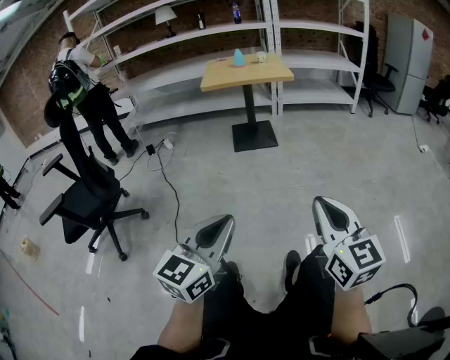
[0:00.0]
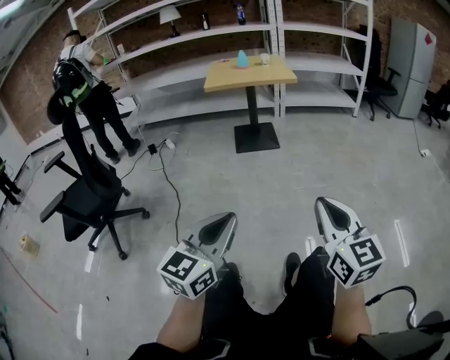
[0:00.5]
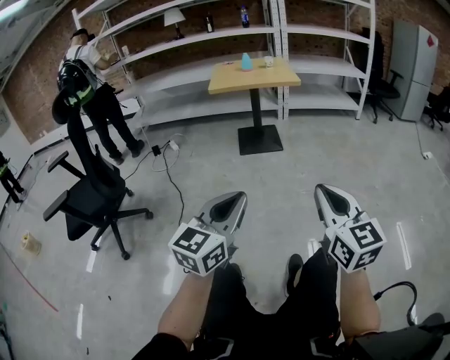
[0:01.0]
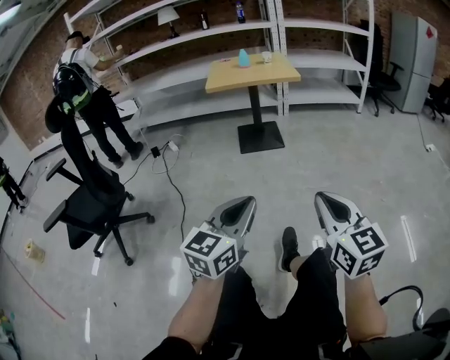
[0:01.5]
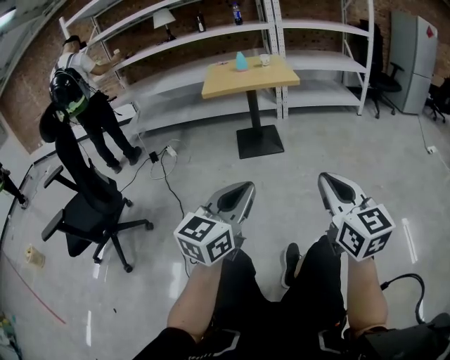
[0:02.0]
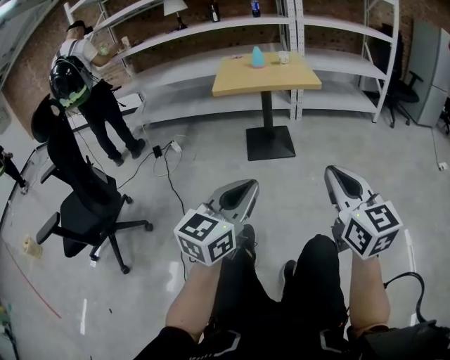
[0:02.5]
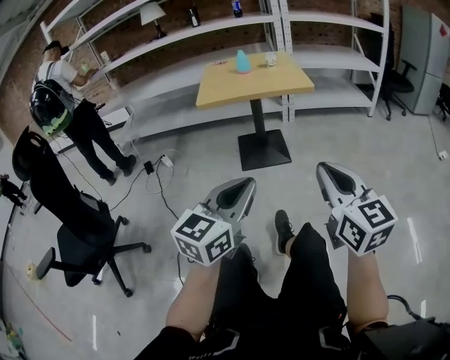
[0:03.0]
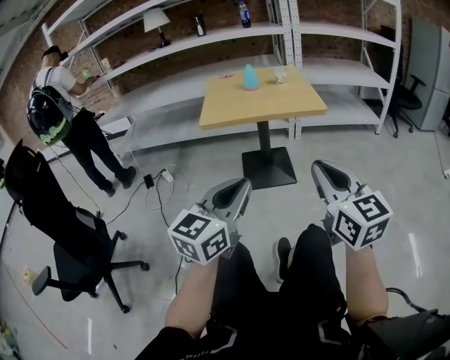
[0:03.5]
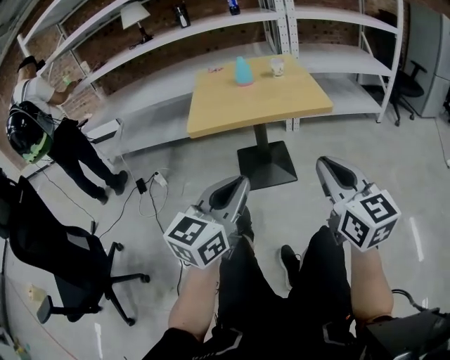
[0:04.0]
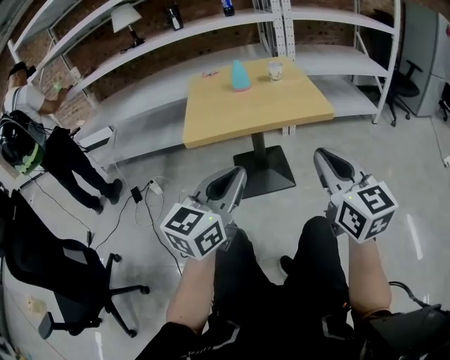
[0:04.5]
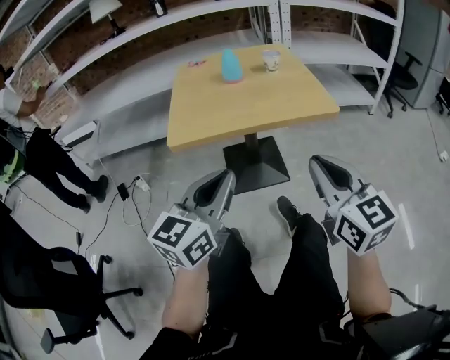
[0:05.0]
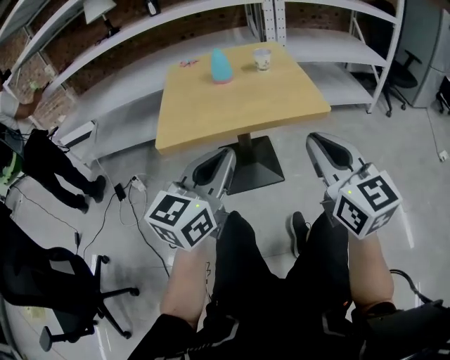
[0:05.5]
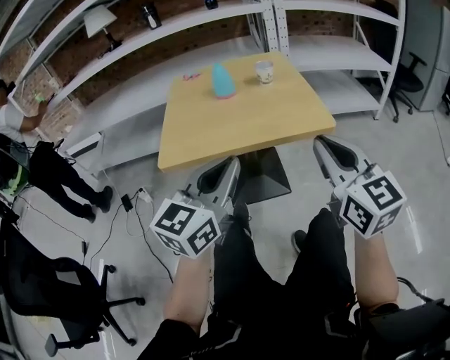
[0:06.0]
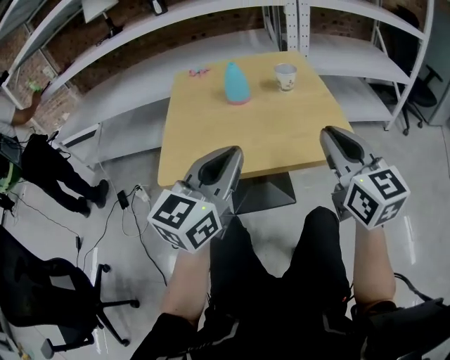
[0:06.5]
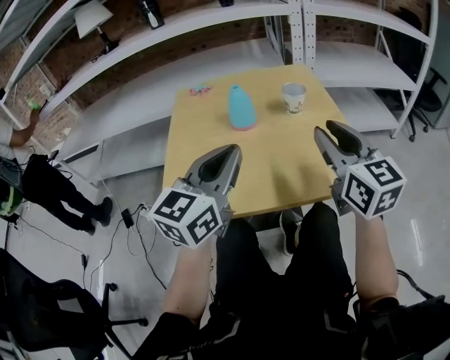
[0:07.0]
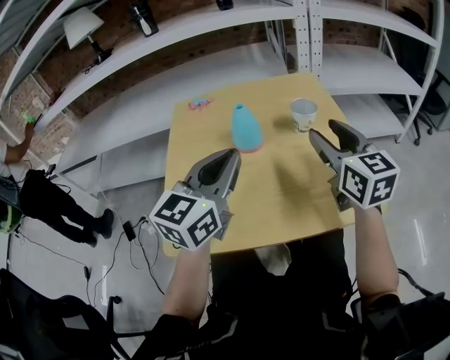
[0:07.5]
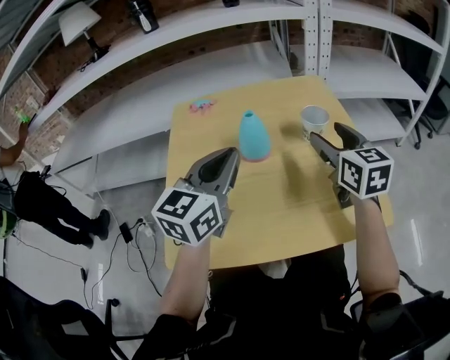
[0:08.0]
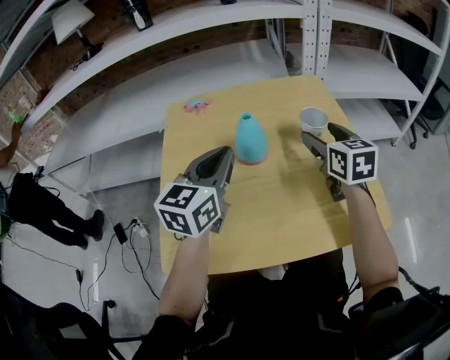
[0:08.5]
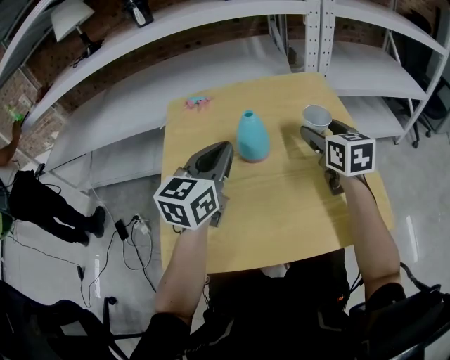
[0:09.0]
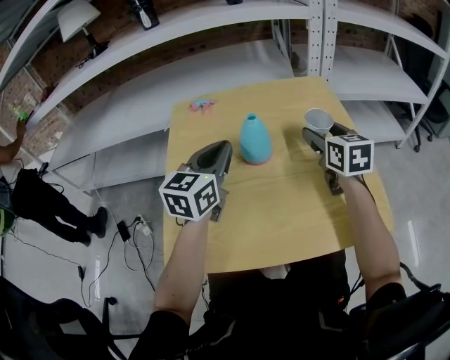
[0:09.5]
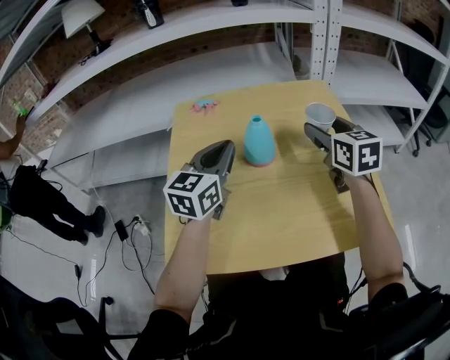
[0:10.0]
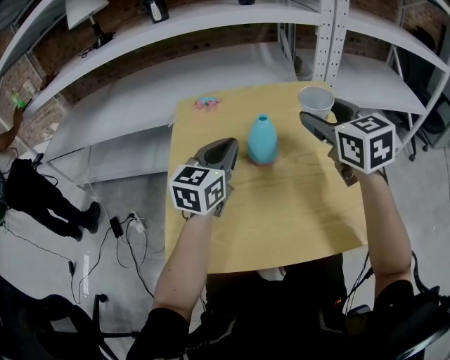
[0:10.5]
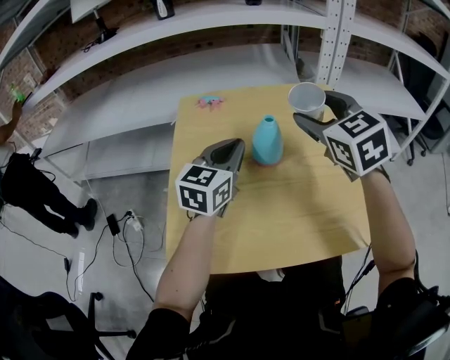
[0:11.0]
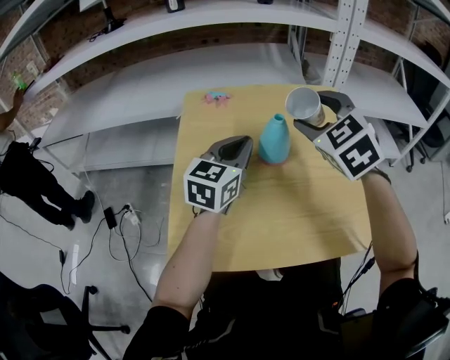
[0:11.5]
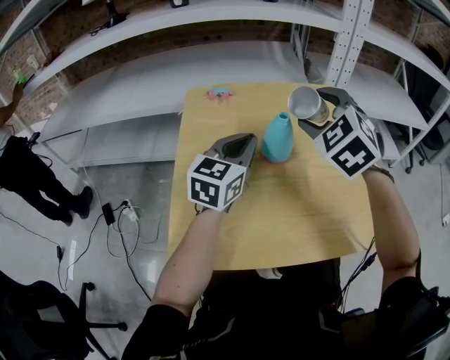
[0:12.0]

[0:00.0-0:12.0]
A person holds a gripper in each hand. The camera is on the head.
0:00.0 to 0:02.0: The two grippers go about 15 cm forward.
0:02.0 to 0:04.0: The pair of grippers is taken forward, about 50 cm.
0:04.0 to 0:06.0: Both grippers travel together forward, approximately 20 cm.
0:06.0 to 0:08.0: The two grippers go approximately 35 cm forward. The right gripper opens its fingers.
0:08.0 to 0:10.0: Both grippers travel together forward, some 5 cm.
0:10.0 to 0:12.0: The right gripper travels to the left and upward by roughly 10 cm, and twists about 50 degrees counterclockwise, seen from behind.

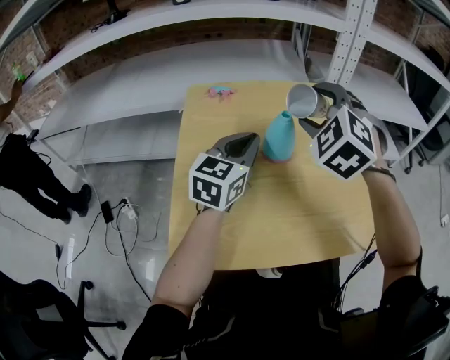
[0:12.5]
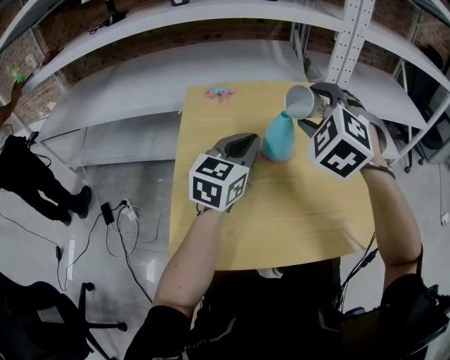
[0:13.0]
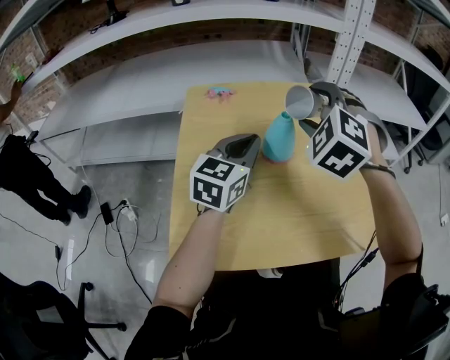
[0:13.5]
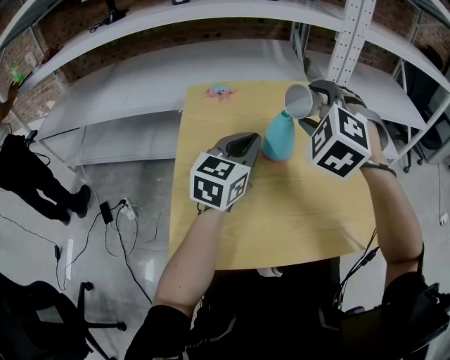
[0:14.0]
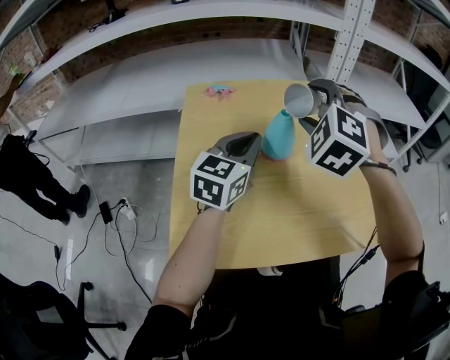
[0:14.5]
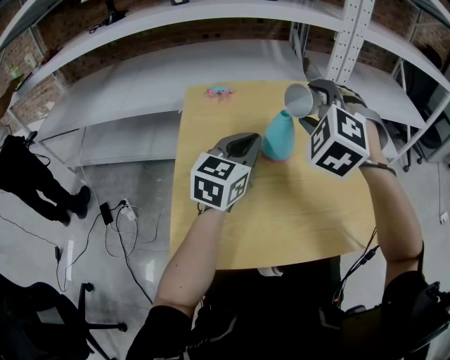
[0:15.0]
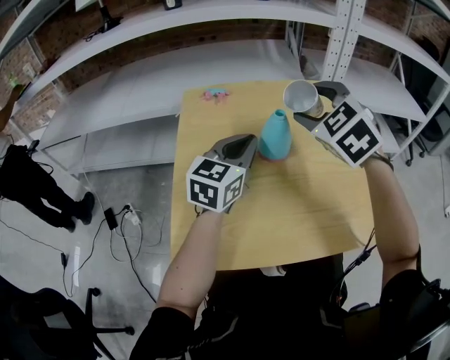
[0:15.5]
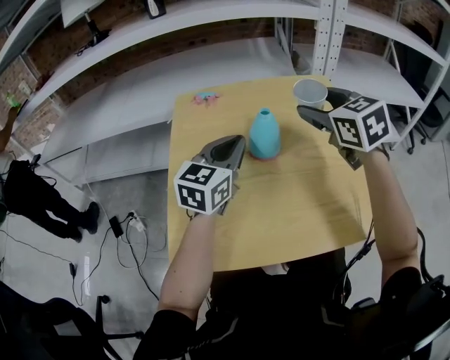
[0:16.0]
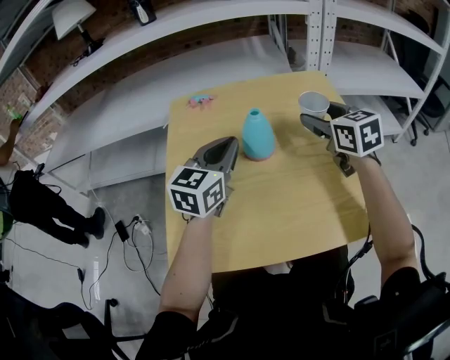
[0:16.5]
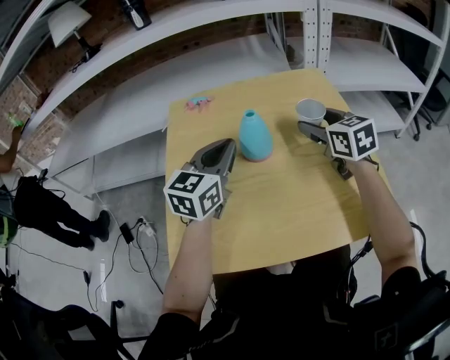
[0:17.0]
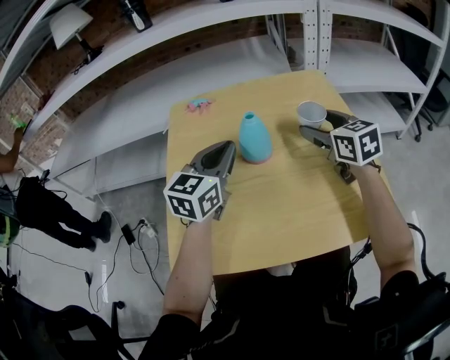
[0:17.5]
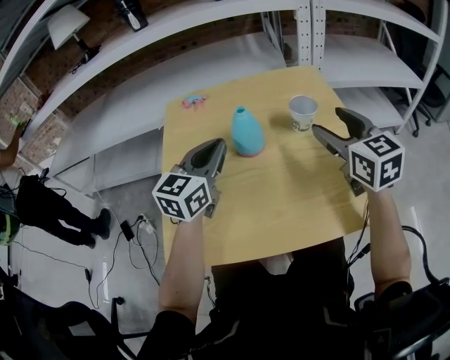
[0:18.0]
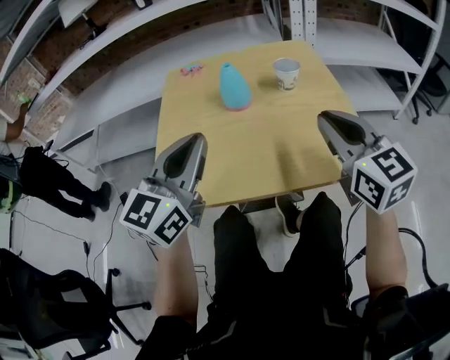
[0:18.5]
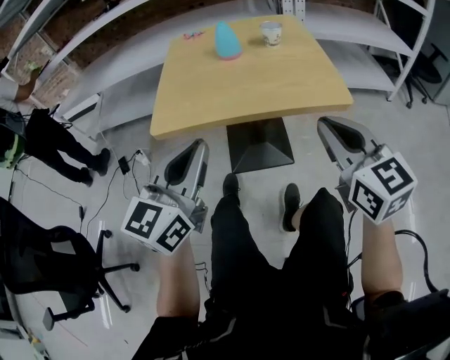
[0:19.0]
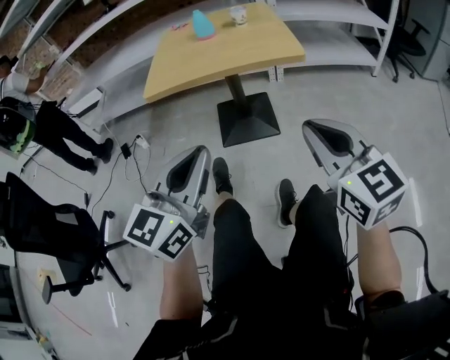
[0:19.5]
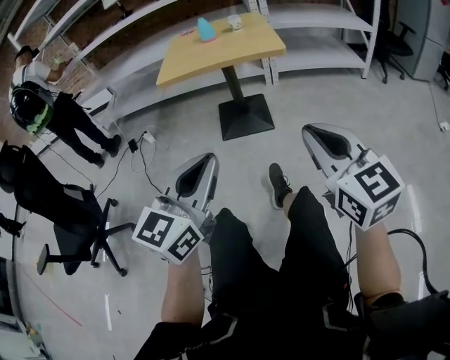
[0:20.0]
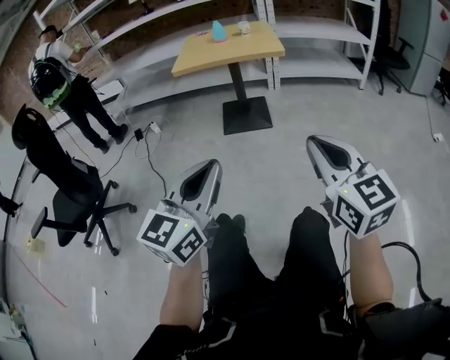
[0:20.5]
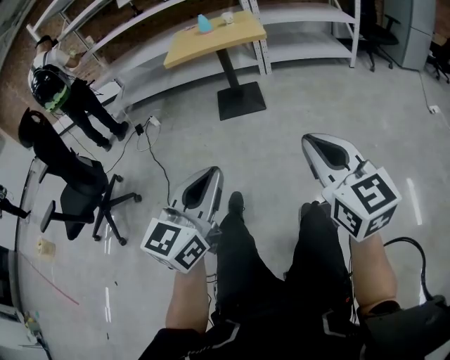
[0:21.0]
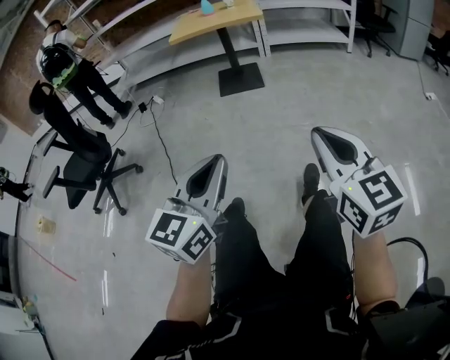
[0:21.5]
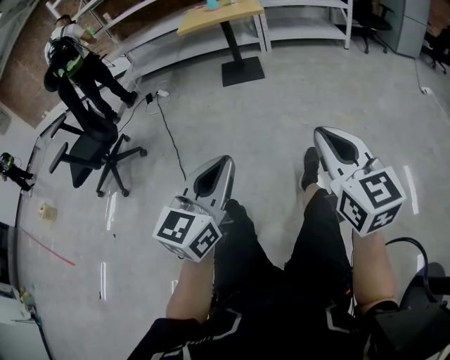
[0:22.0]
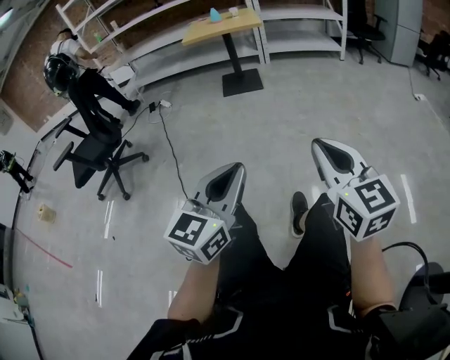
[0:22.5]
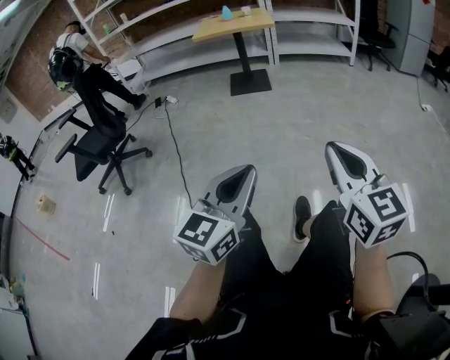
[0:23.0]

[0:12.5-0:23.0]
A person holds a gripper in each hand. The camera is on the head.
0:12.5 to 0:14.5: The grippers stay close to where they were, moving slightly.
0:14.5 to 0:16.5: The right gripper travels to the right and downward by approximately 15 cm, and rolls clockwise, seen from behind, by approximately 60 degrees.
0:16.5 to 0:19.0: The pair of grippers is taken backward, about 40 cm. The right gripper closes up.
0:19.0 to 0:21.0: The two grippers travel together, backward, about 70 cm.
0:21.0 to 0:23.0: The two grippers go some 35 cm backward.

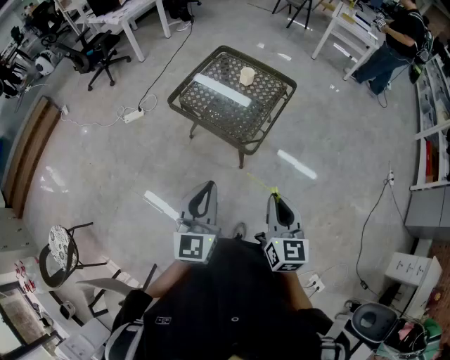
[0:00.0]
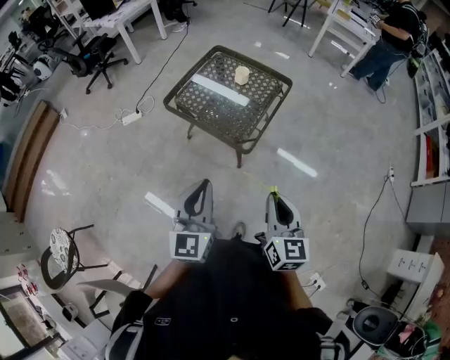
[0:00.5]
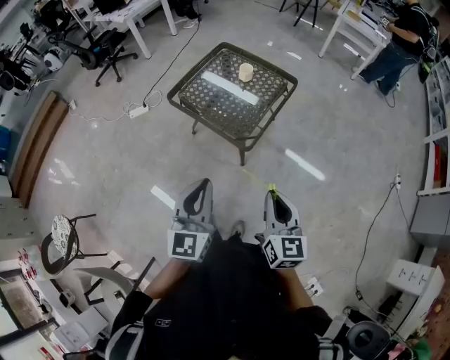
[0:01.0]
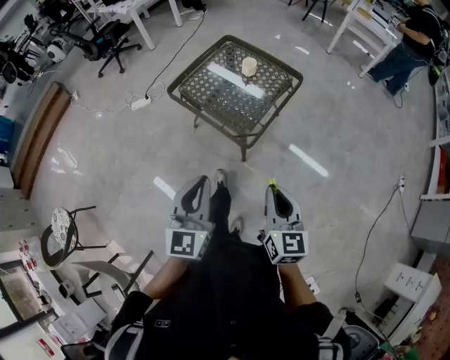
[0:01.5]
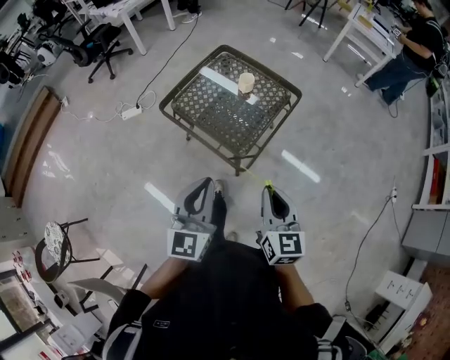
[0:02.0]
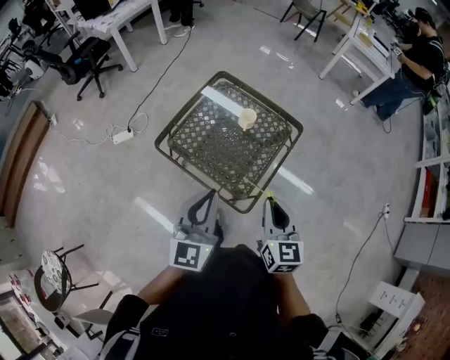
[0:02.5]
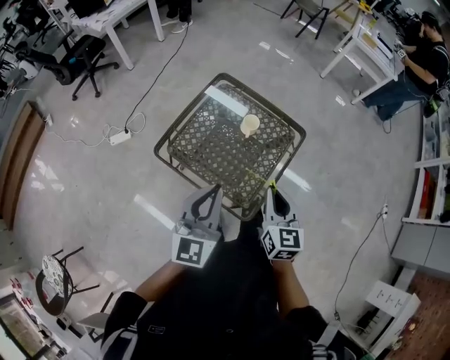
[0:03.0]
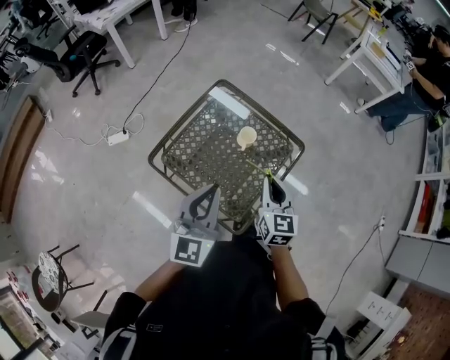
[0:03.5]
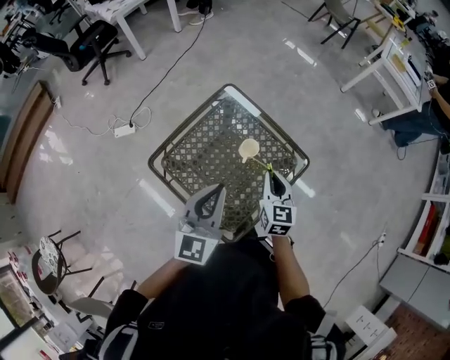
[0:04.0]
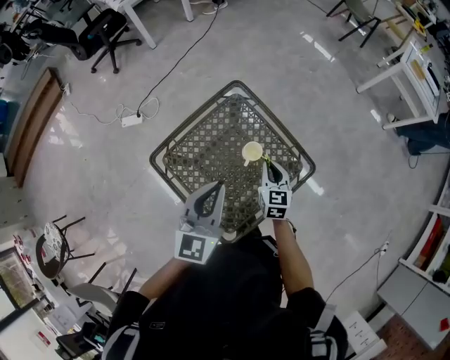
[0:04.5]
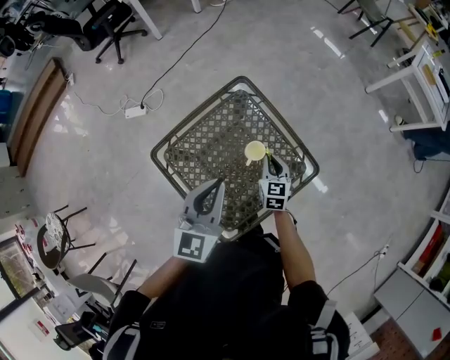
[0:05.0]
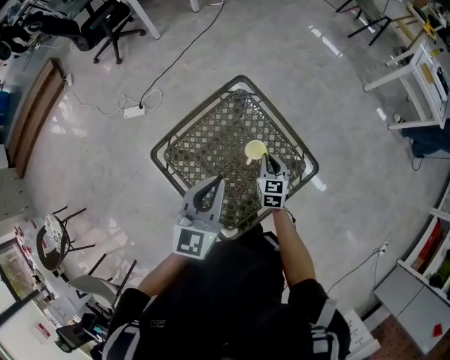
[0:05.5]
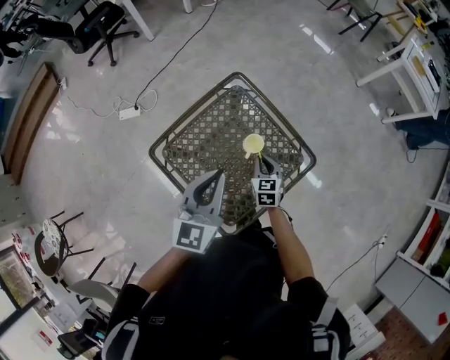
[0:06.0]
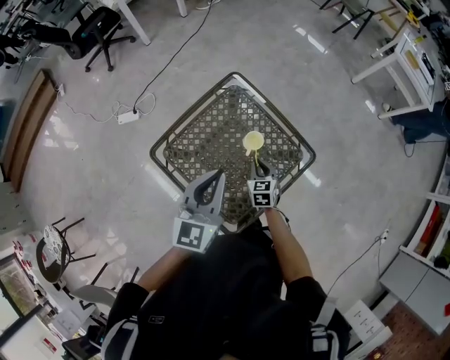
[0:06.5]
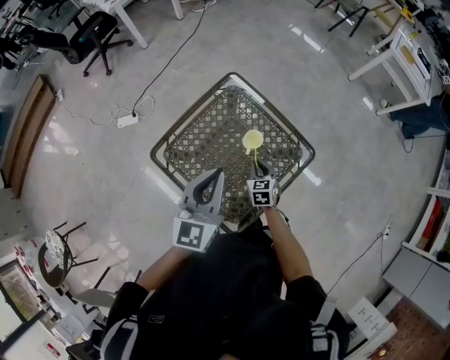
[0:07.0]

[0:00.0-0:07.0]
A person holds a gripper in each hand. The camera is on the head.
0:00.0 to 0:02.0: The right gripper goes some 15 cm forward; the left gripper goes about 15 cm forward and to the right.
0:02.0 to 0:03.5: Both grippers move forward, some 35 cm.
0:03.5 to 0:05.0: The left gripper goes some 15 cm forward, while the right gripper travels forward and downward by some 30 cm.
0:05.0 to 0:07.0: The right gripper moves backward, about 10 cm.
